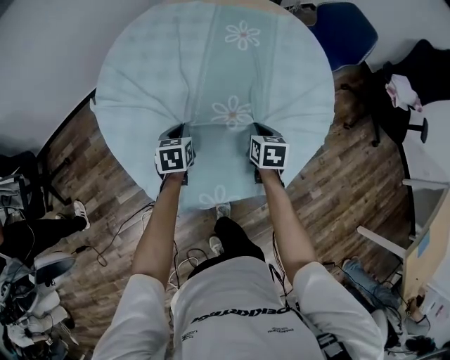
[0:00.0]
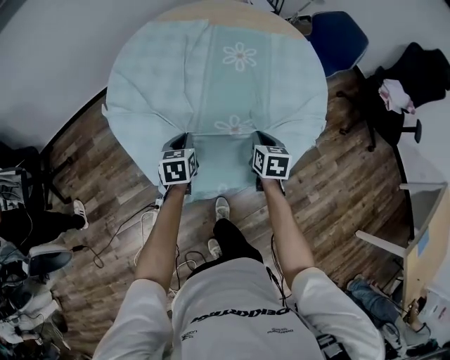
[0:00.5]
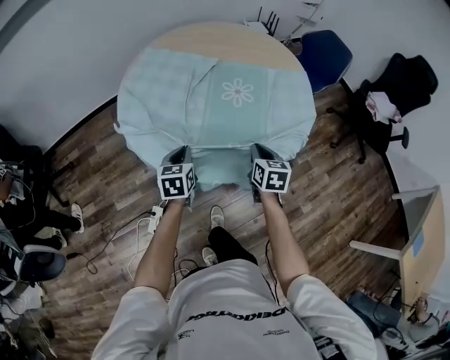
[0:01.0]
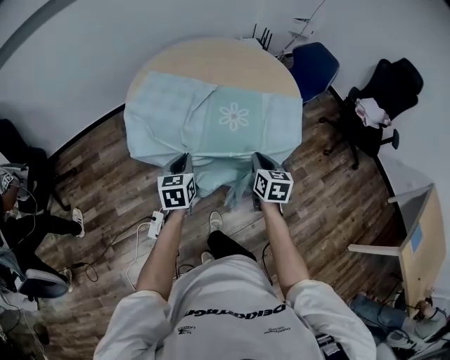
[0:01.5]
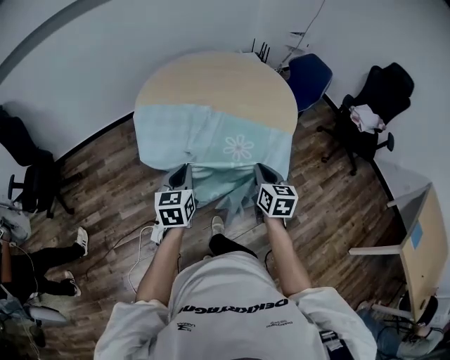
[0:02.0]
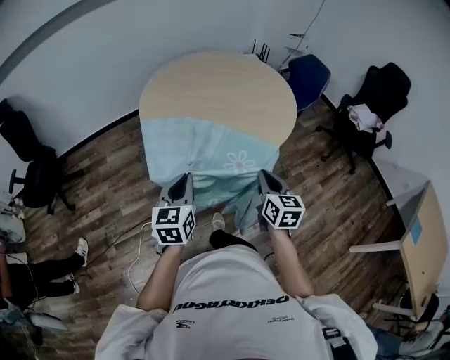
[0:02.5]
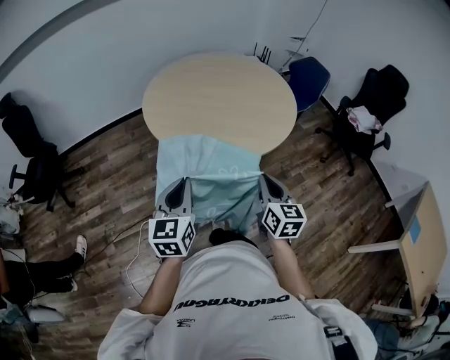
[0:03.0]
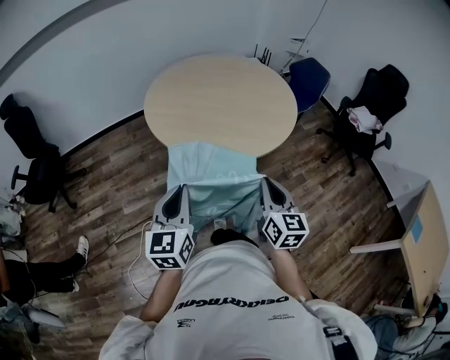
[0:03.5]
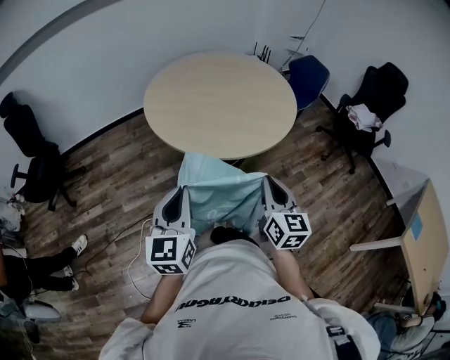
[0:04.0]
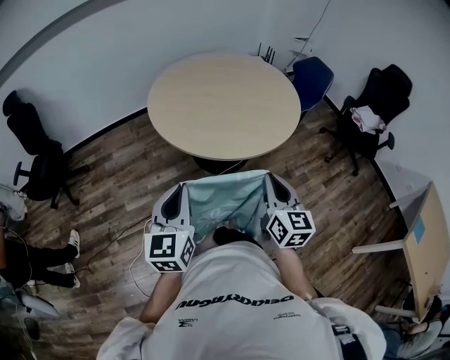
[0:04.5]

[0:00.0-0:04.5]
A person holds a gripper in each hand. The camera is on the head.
0:00.0 to 0:02.0: Both grippers move backward and upward, roughly 40 cm. The left gripper rotates some 30 degrees. The right gripper changes its angle by some 20 degrees.
0:02.0 to 0:04.5: Both grippers move backward and upward, some 20 cm.

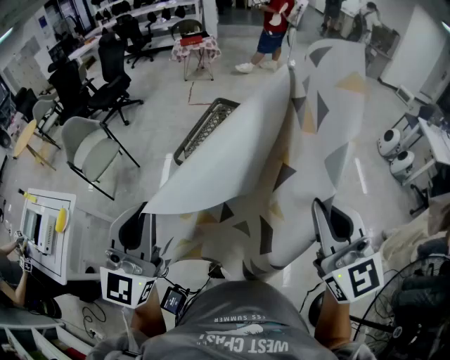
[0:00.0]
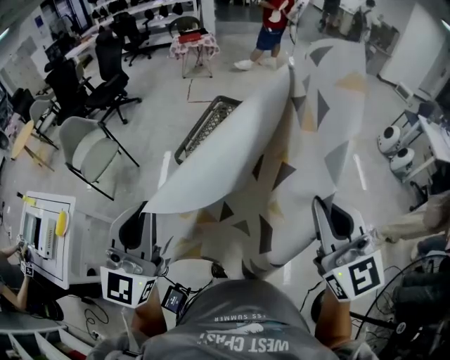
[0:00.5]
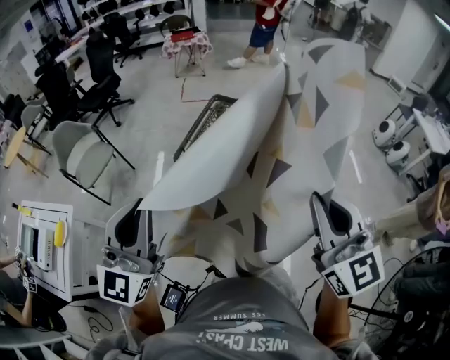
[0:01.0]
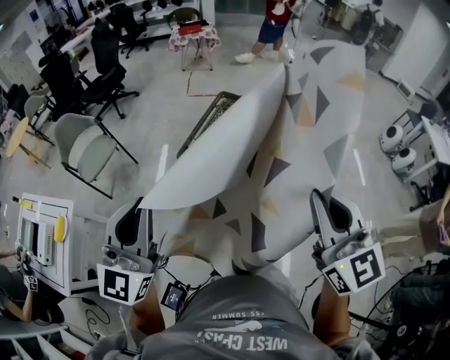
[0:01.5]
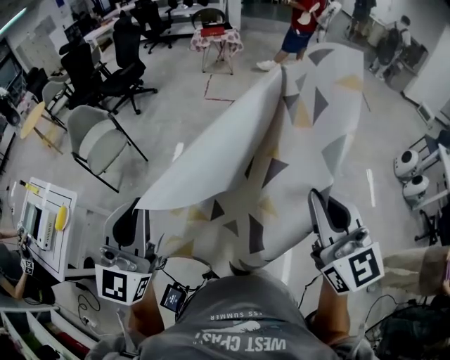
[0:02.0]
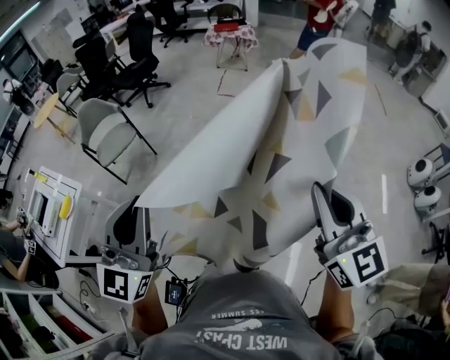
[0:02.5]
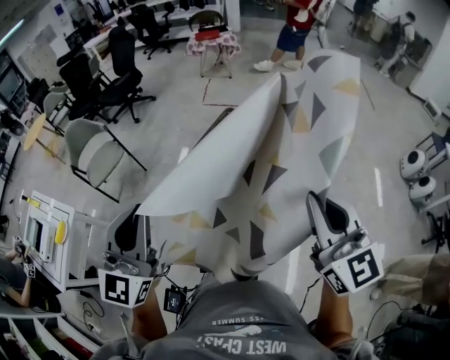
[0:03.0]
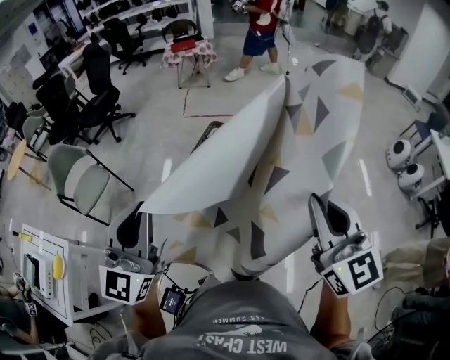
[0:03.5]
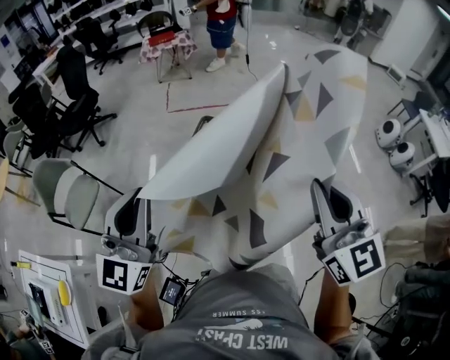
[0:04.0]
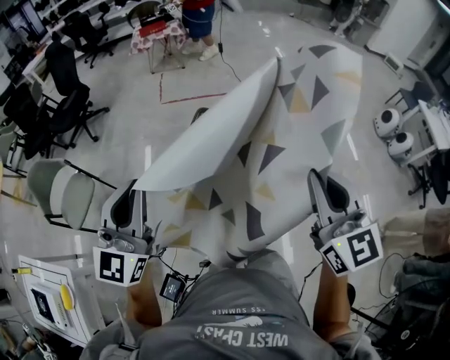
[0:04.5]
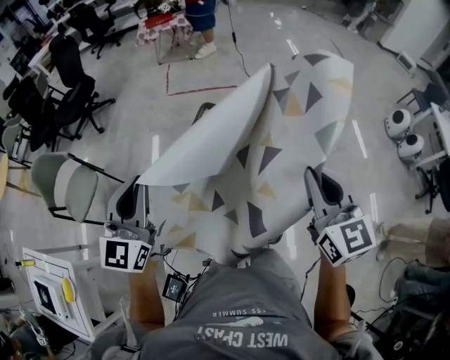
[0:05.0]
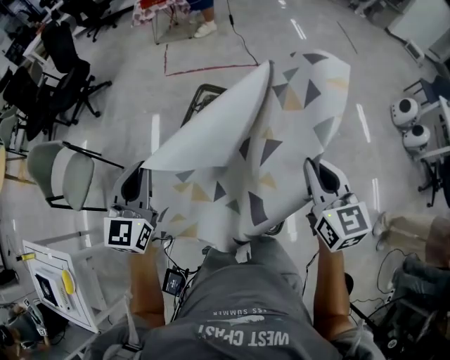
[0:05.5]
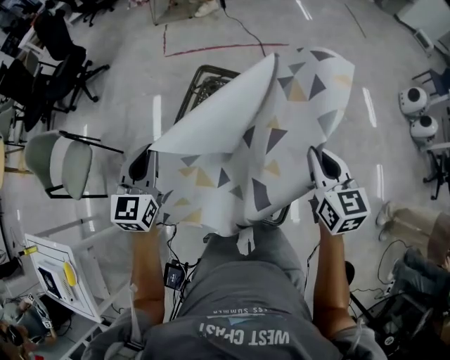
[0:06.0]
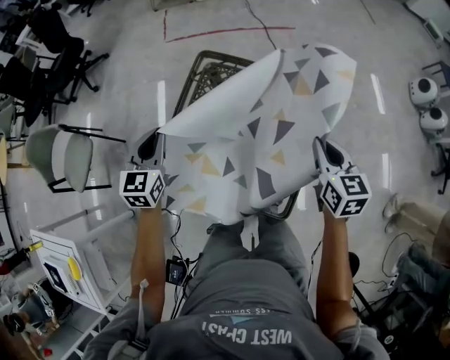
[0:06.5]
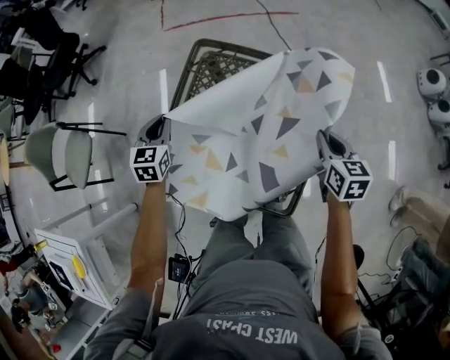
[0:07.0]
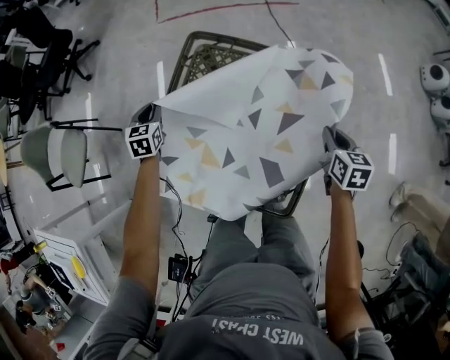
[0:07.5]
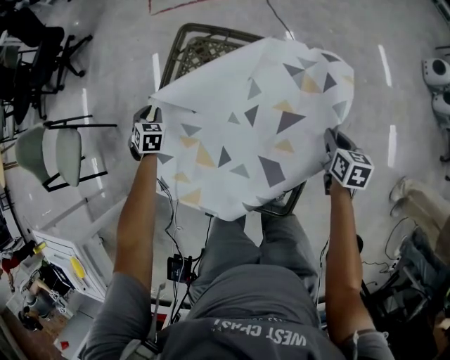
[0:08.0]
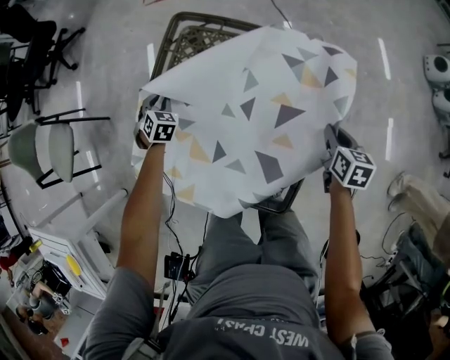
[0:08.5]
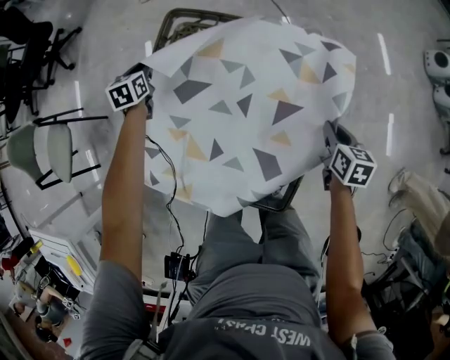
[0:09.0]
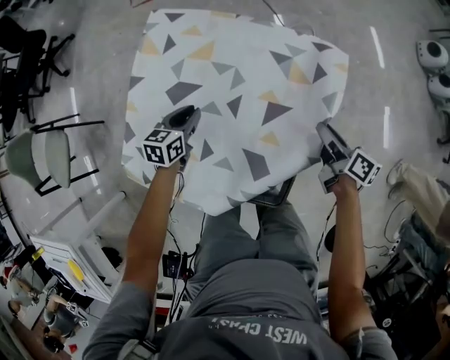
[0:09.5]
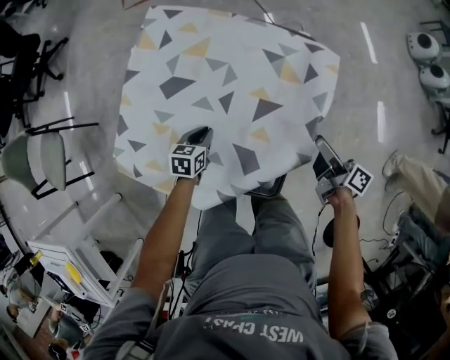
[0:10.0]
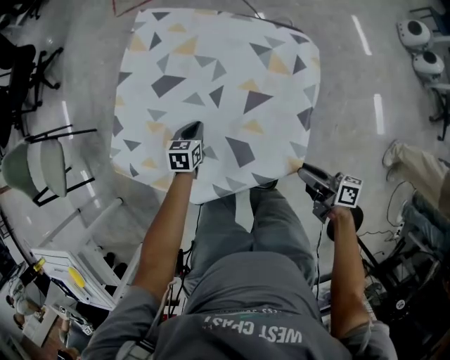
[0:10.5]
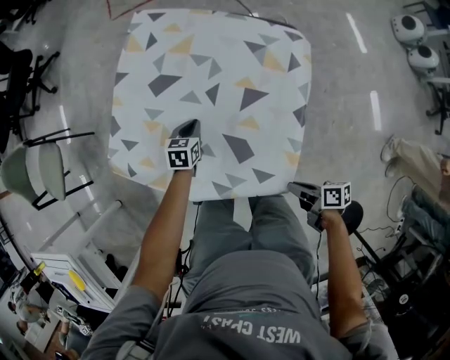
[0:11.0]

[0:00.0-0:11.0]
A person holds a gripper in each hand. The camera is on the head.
0:00.0 to 0:02.0: The grippers both shift forward by about 15 cm.
0:02.0 to 0:03.5: The left gripper goes about 20 cm forward. The right gripper travels forward and to the right by approximately 15 cm.
0:03.5 to 0:05.5: Both grippers move forward and downward, roughly 30 cm. The left gripper swivels some 20 degrees; the right gripper swivels approximately 20 degrees.
0:05.5 to 0:07.5: The right gripper goes roughly 35 cm downward, and turns by some 30 degrees. The left gripper is displaced downward and forward by approximately 40 cm, and tilts its fingers some 30 degrees downward.
0:07.5 to 0:09.0: The left gripper travels forward and downward by approximately 10 cm. The right gripper is displaced downward by approximately 5 cm.
0:09.0 to 0:11.0: The left gripper is displaced backward and to the right by approximately 35 cm, and rotates about 20 degrees, while the right gripper travels backward by approximately 30 cm, swivels approximately 50 degrees, and opens, then closes once more.

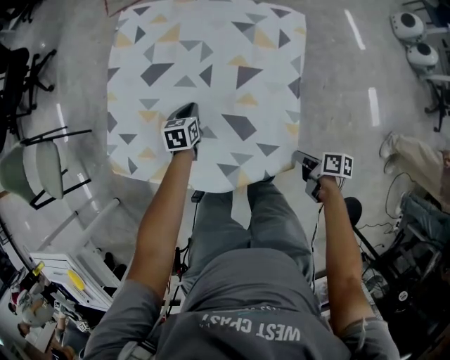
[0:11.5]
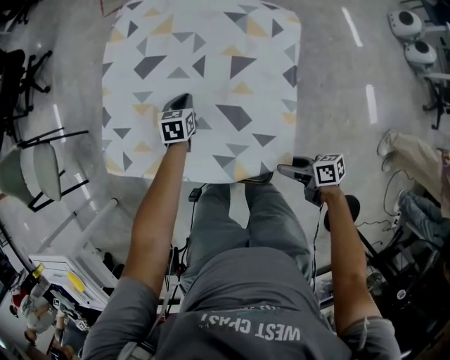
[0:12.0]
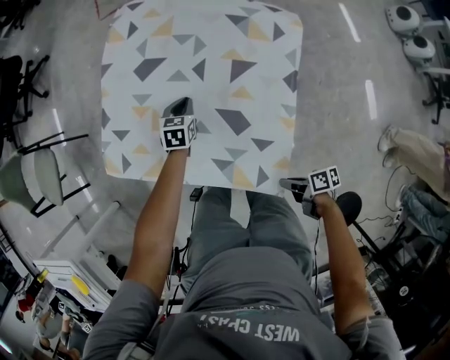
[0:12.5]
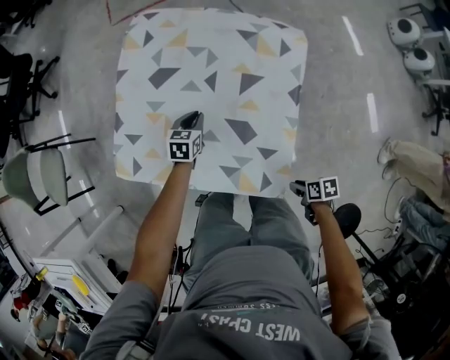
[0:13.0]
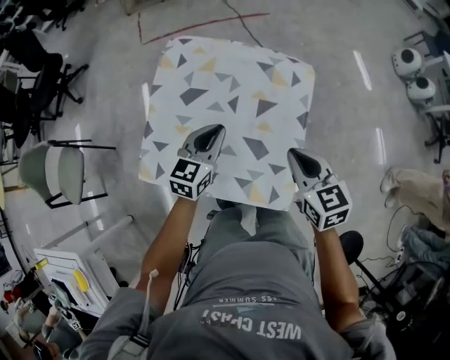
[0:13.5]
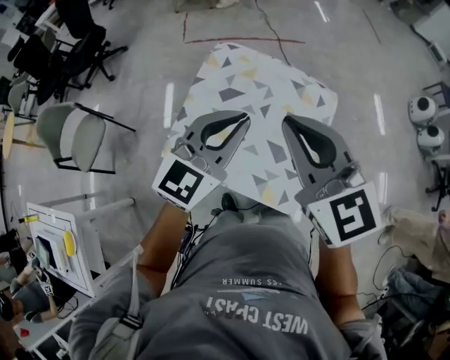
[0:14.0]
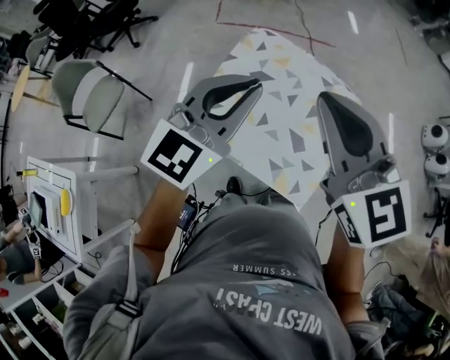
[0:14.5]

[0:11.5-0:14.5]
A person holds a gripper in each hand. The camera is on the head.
0:11.5 to 0:13.0: The right gripper heads backward and to the left, covering approximately 10 cm, turns by approximately 30 degrees, and opens up.
0:13.0 to 0:14.5: Both grippers travel together upward, roughly 60 cm. The right gripper angles its fingers upward, by roughly 50 degrees, and closes up. The left gripper tilts its fingers some 40 degrees upward.

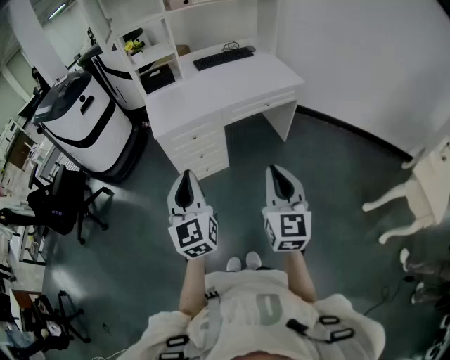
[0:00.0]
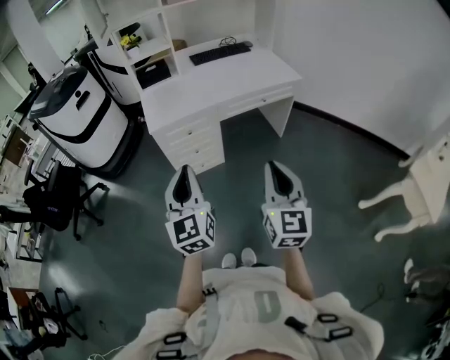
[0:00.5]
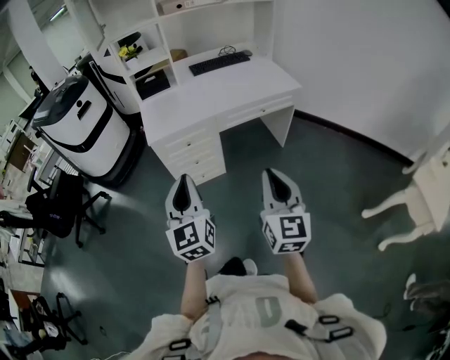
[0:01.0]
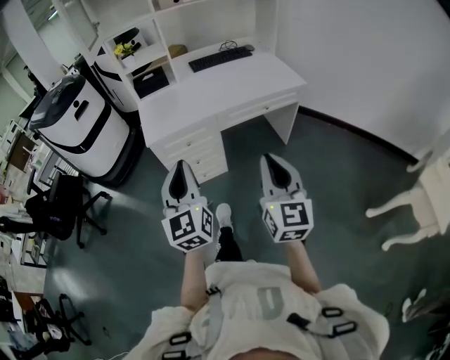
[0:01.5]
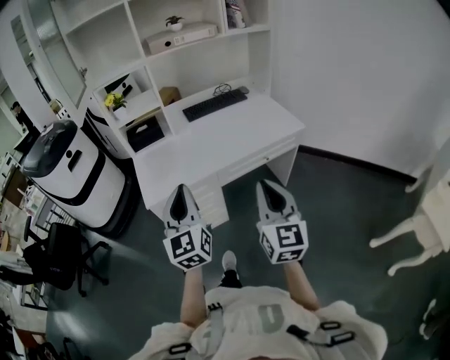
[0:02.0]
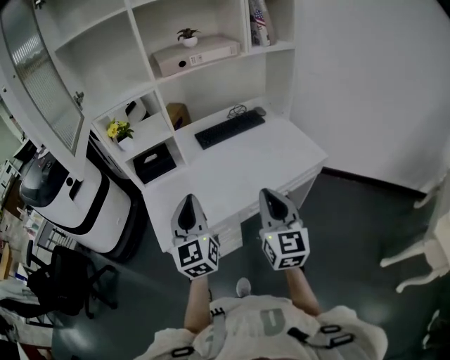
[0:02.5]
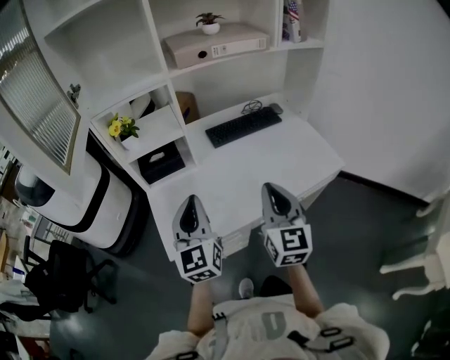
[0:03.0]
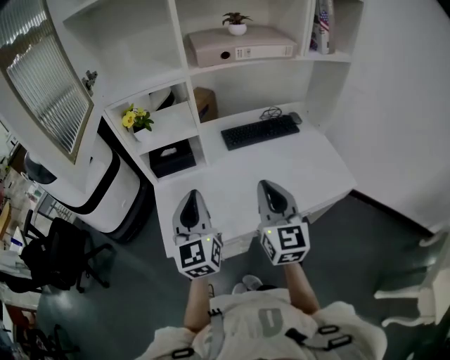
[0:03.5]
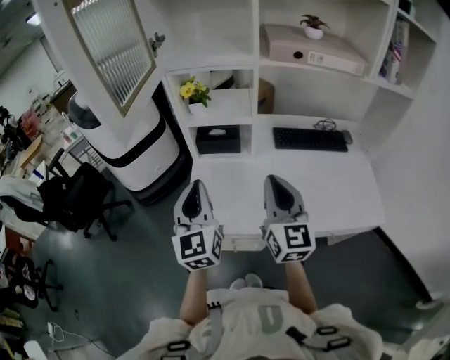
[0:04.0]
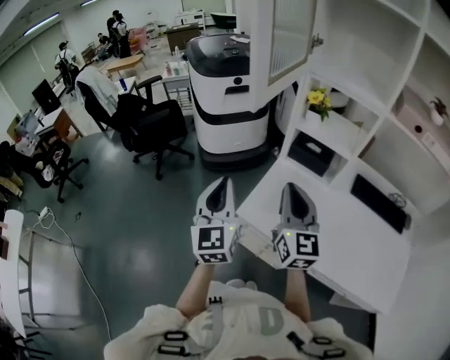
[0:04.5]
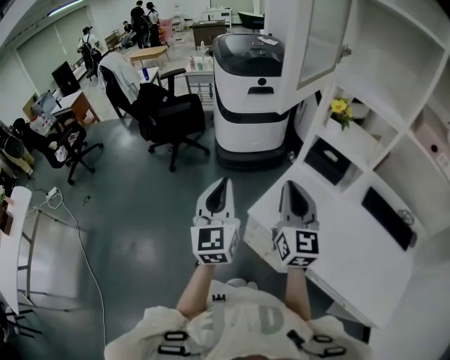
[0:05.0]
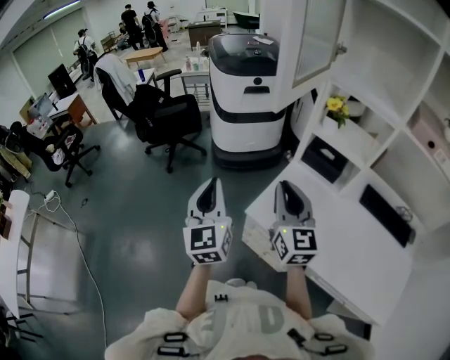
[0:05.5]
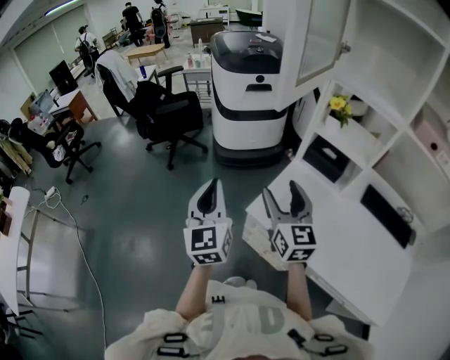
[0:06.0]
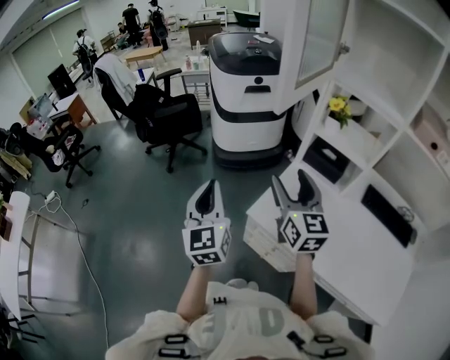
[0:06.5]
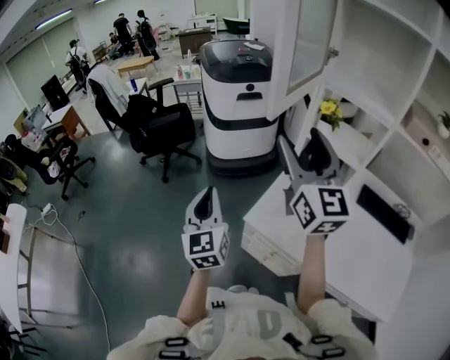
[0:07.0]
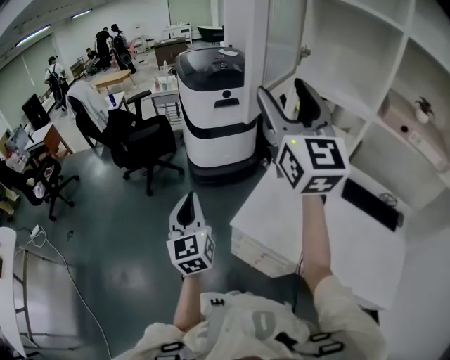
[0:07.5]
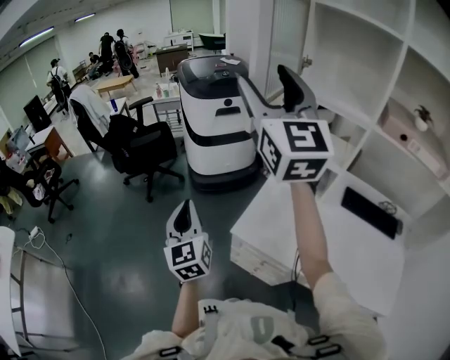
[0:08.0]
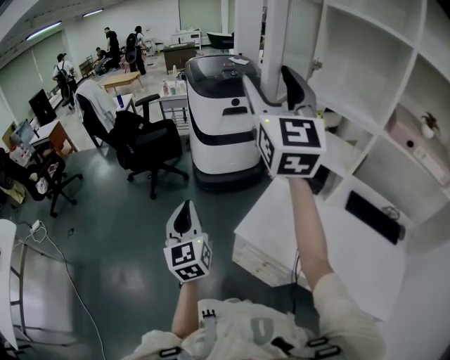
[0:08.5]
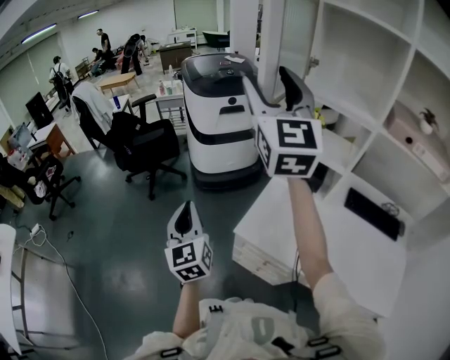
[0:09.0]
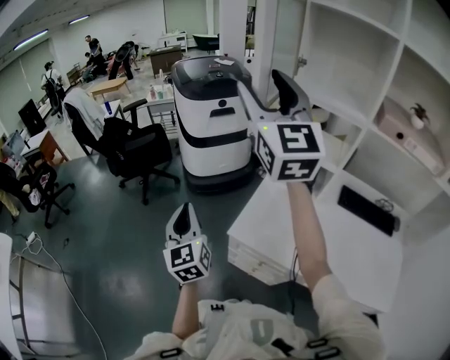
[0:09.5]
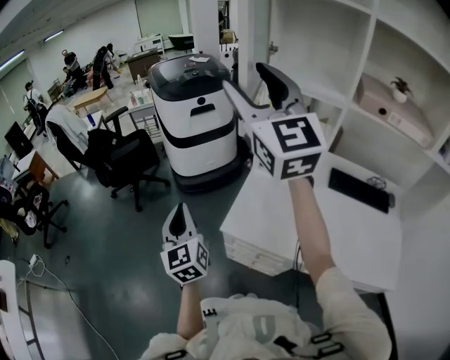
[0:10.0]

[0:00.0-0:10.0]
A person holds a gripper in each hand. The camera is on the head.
0:00.0 to 0:02.0: Both grippers move forward, roughly 25 cm.
0:02.0 to 0:04.0: The right gripper moves about 40 cm, and swivels approximately 30 degrees, while the left gripper ends up roughly 30 cm from where it was, and turns by approximately 20 degrees.
0:04.0 to 0:06.0: The left gripper ends up some 25 cm from where it was, and changes its angle by approximately 40 degrees; the right gripper ends up some 25 cm from where it was, turns by approximately 40 degrees, and opens up.
0:06.0 to 0:08.0: The right gripper moves upward, approximately 35 cm, and swivels roughly 30 degrees.
0:08.0 to 0:10.0: The grippers move only a little.
